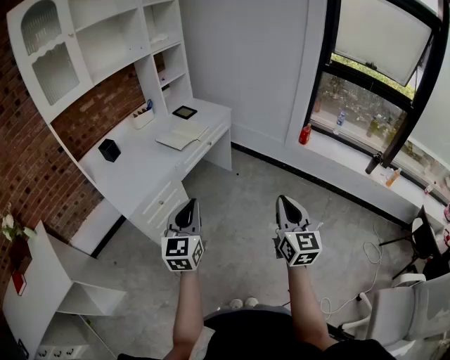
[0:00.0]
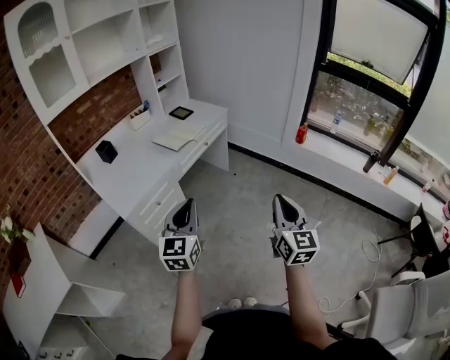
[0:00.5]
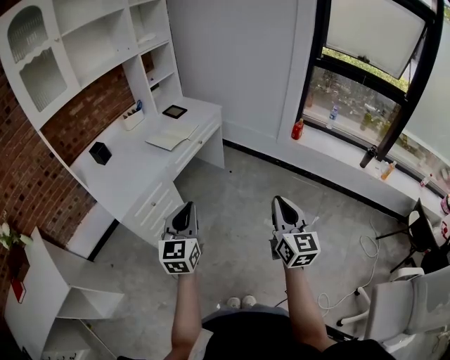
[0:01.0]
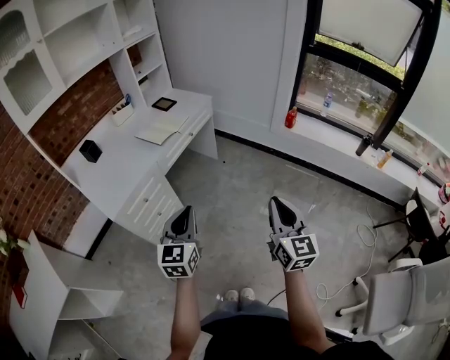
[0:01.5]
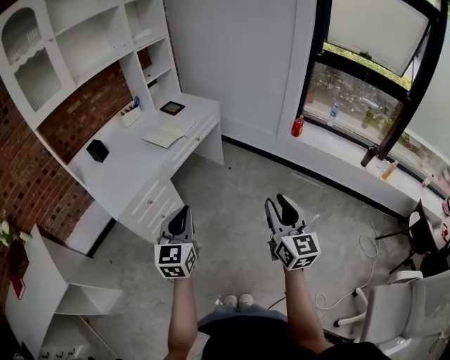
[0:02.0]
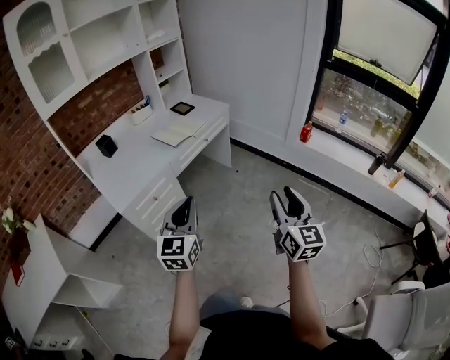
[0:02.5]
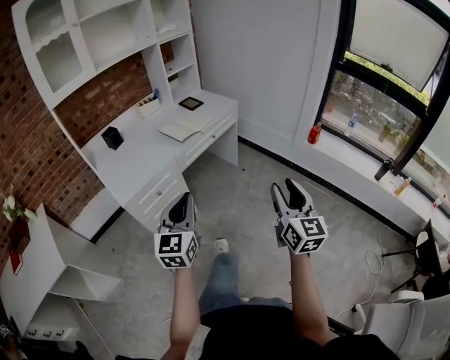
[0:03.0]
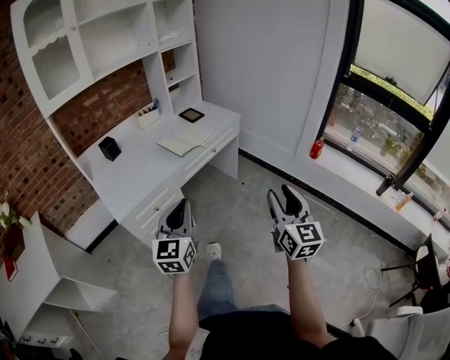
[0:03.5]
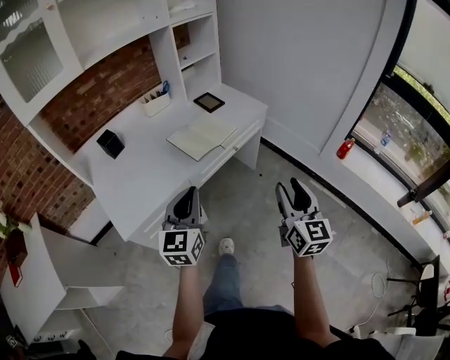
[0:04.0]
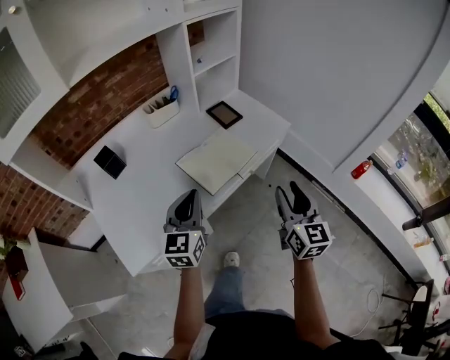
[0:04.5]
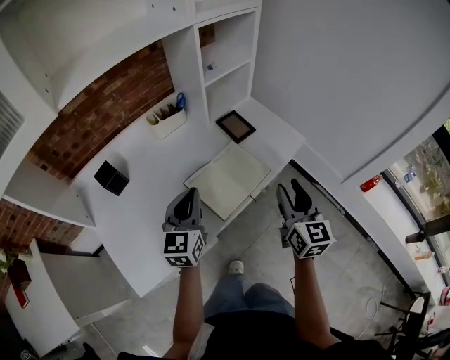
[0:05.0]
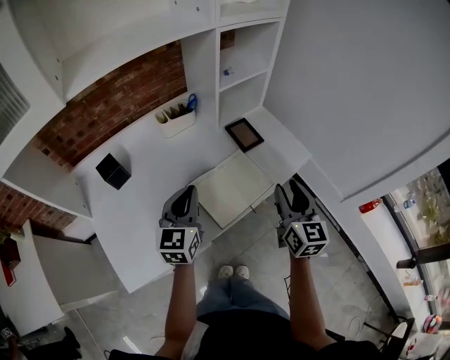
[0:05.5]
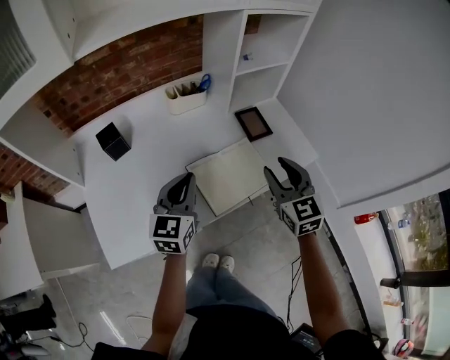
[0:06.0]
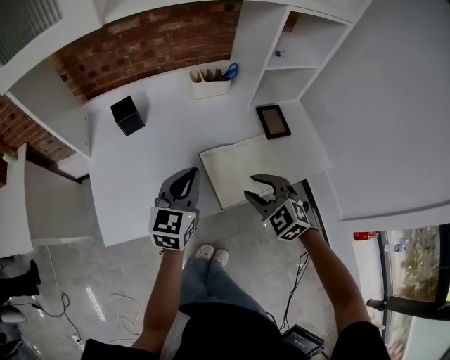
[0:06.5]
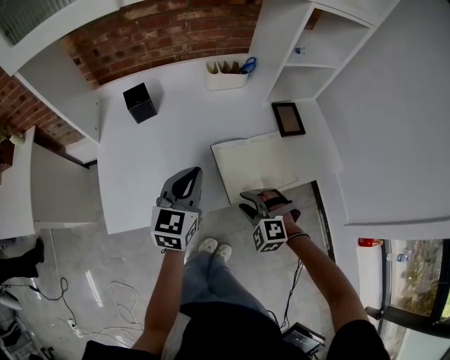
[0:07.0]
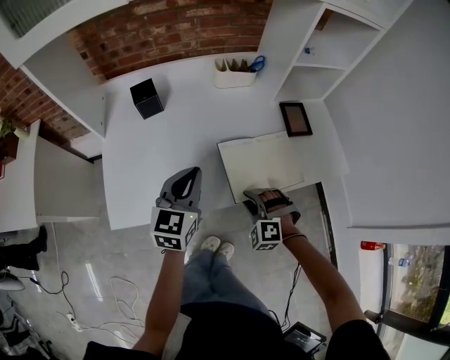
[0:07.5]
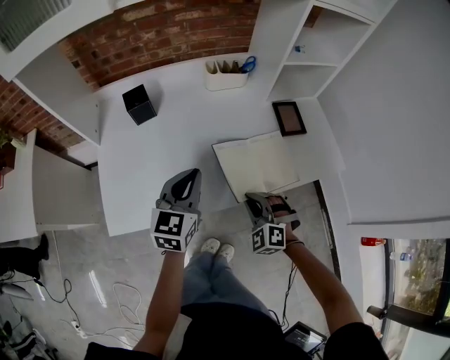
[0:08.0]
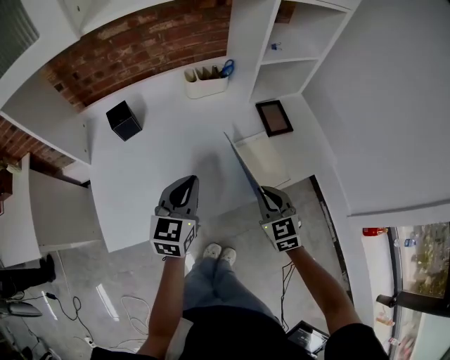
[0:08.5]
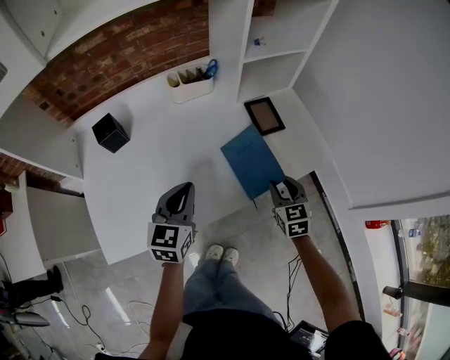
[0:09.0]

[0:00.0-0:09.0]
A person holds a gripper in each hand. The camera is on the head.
0:00.0 to 0:02.0: The right gripper opens.
0:02.0 to 0:04.5: The pair of grippers is taken forward, approximately 50 cm.
0:04.5 to 0:07.0: The left gripper ends up roughly 15 cm from where it was. Meanwhile the right gripper ends up roughly 30 cm from where it was, and angles its fingers downward, by about 50 degrees.
0:07.0 to 0:09.0: The right gripper goes some 20 cm to the right and forward, rolls clockwise, seen from behind, by approximately 70 degrees, and closes and opens again; the left gripper heads to the right, covering approximately 5 cm.

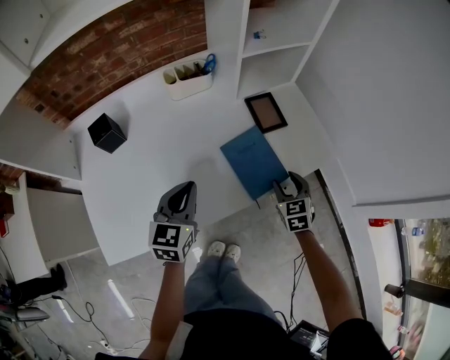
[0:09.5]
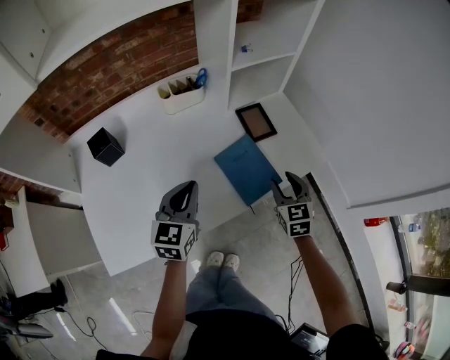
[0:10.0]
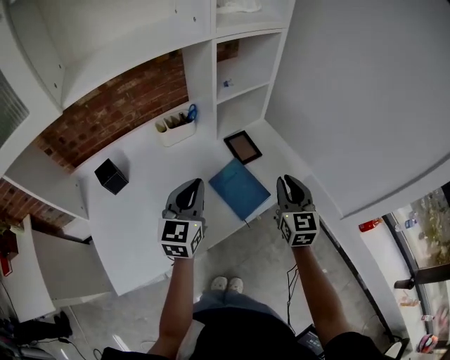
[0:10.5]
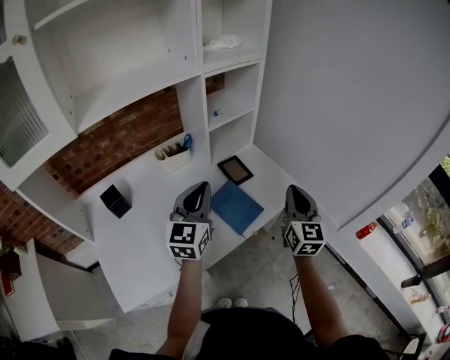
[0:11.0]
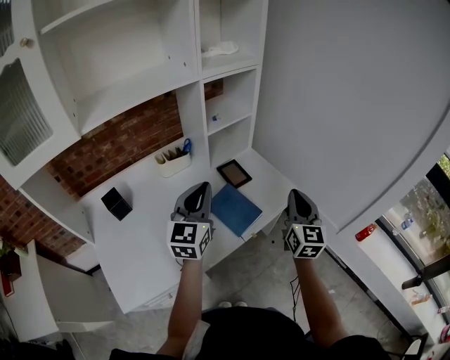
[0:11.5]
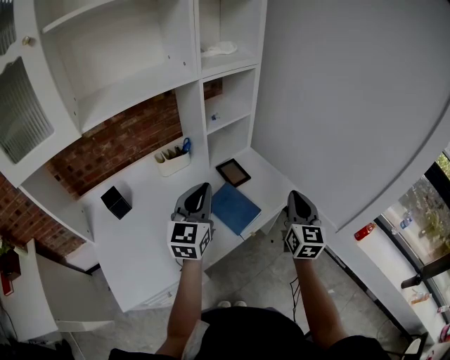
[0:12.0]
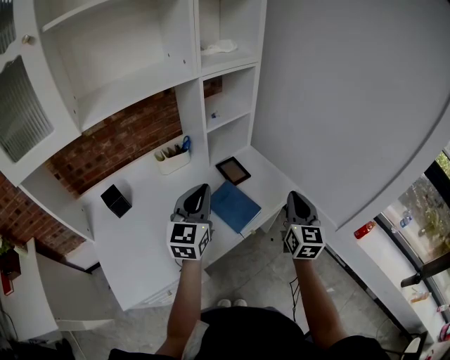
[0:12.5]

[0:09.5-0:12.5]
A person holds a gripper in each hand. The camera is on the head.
0:09.5 to 0:11.0: The right gripper shifts some 30 cm upward, tilts its fingers roughly 40 degrees upward, and closes up. The left gripper moves upward, approximately 20 cm, and turns by some 30 degrees.
0:11.0 to 0:12.5: There are only small adjustments of the grippers.

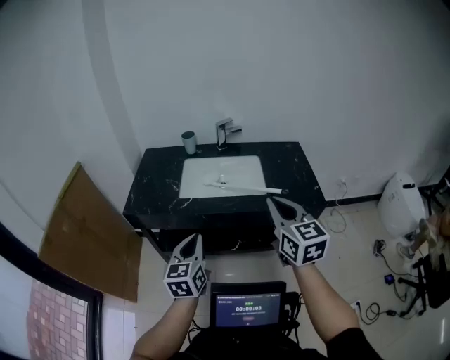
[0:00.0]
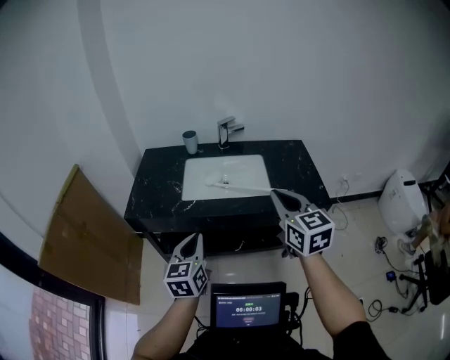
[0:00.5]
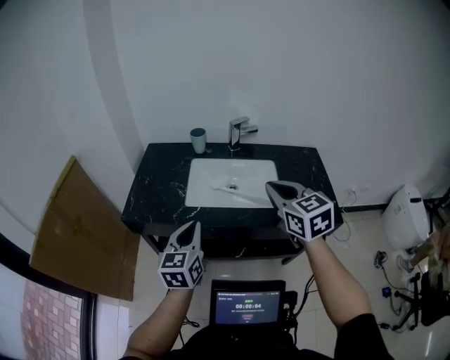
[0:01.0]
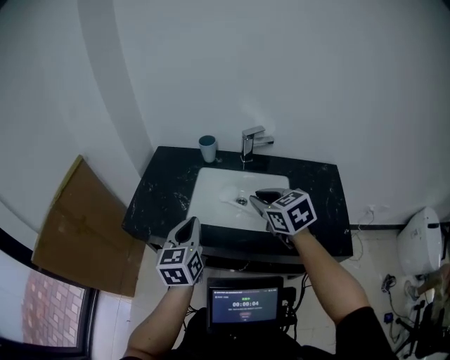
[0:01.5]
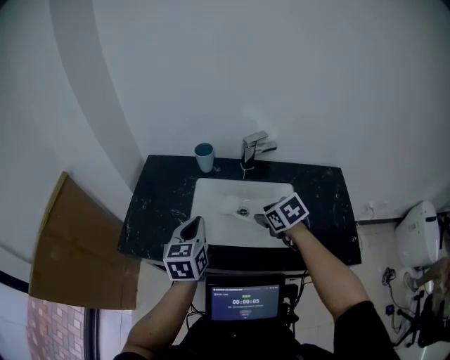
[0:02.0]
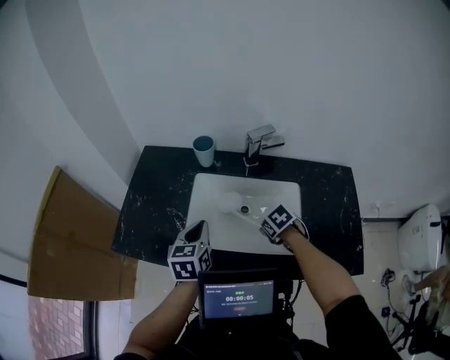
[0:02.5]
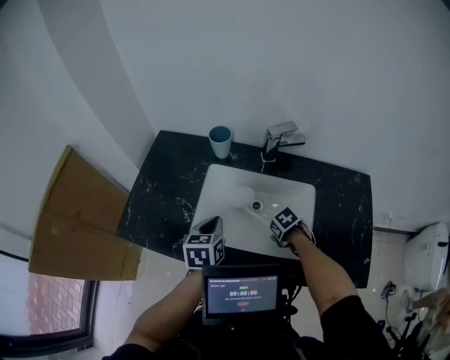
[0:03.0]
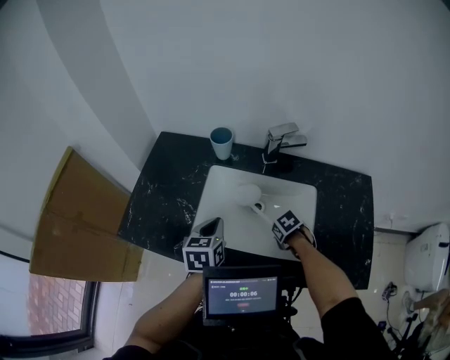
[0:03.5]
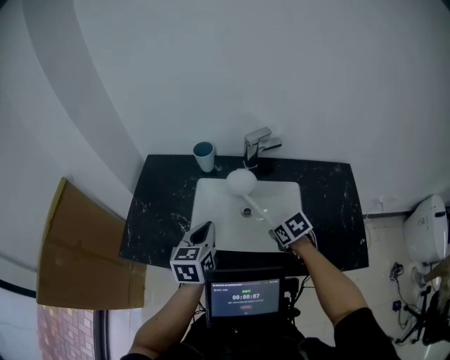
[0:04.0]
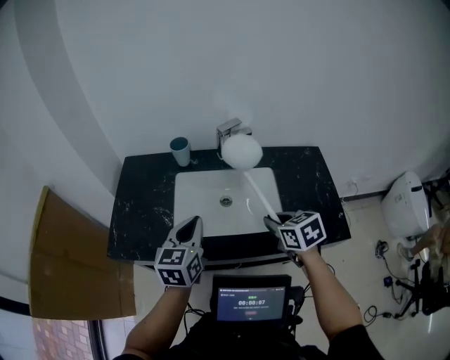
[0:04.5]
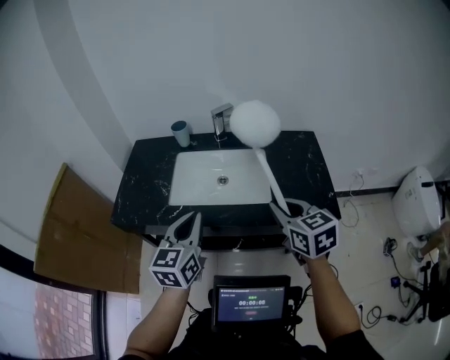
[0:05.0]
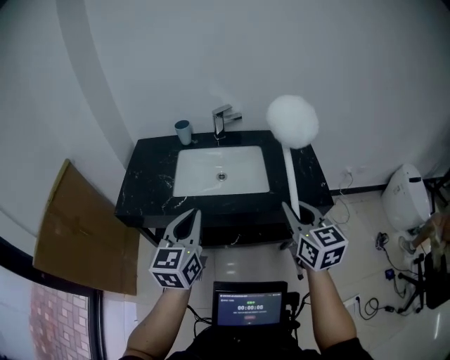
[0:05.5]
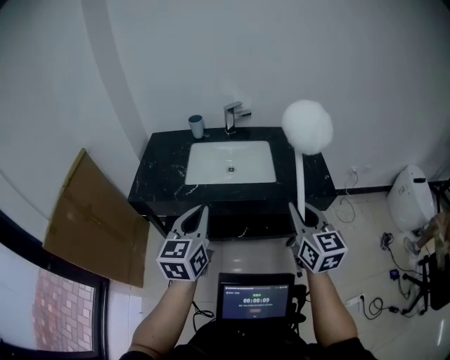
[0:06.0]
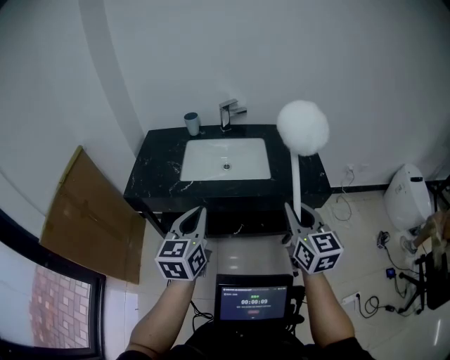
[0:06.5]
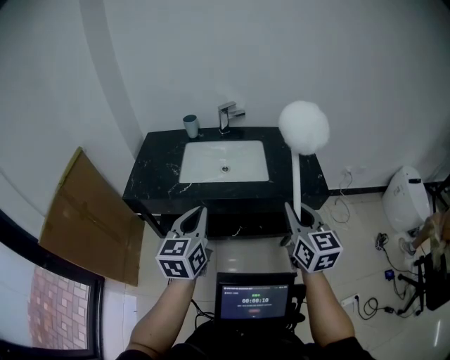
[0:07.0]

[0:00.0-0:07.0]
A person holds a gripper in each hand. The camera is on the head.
0:00.0 to 0:02.0: The left gripper moves forward, approximately 35 cm; the right gripper goes roughly 40 cm forward and downward, tilts its fingers about 50 degrees downward, and opens its fingers.
0:02.0 to 0:03.5: The left gripper moves downward, roughly 10 cm, while the right gripper moves downward, about 20 cm, changes its angle by roughly 30 degrees, and closes.
0:03.5 to 0:05.0: The left gripper changes place by about 30 cm, and changes its angle by some 30 degrees. The right gripper heads upward, covering roughly 30 cm, and tips its fingers upward by about 60 degrees.
0:05.0 to 0:07.0: The grippers both shift backward by some 15 cm. The right gripper rotates about 20 degrees.

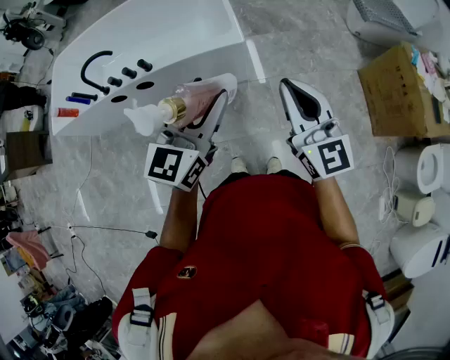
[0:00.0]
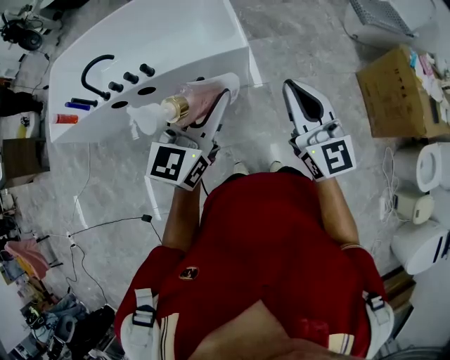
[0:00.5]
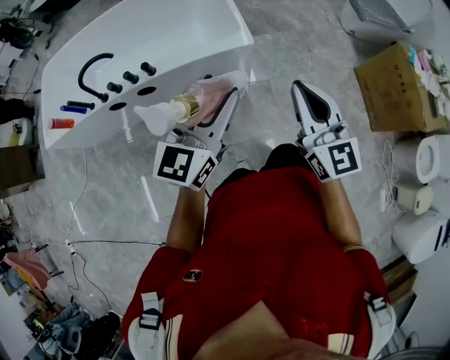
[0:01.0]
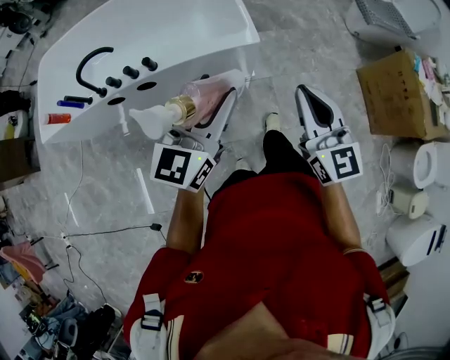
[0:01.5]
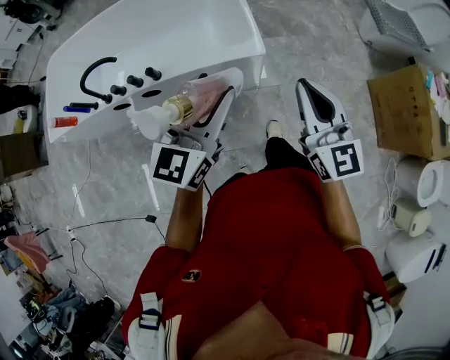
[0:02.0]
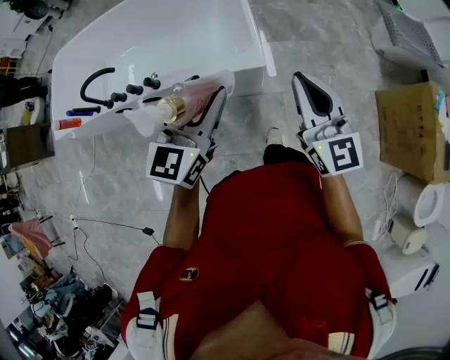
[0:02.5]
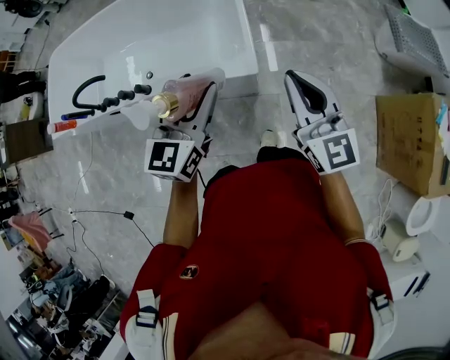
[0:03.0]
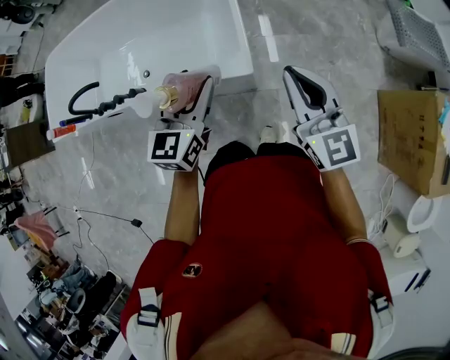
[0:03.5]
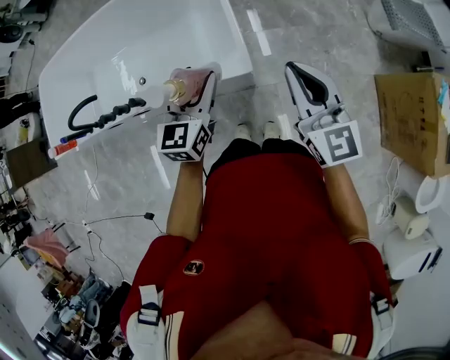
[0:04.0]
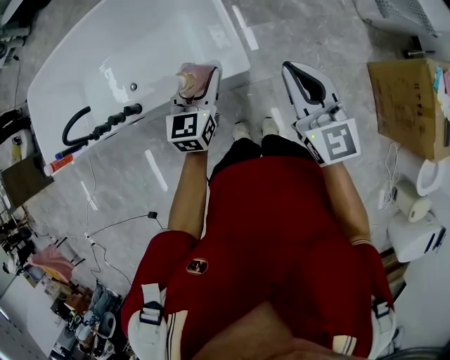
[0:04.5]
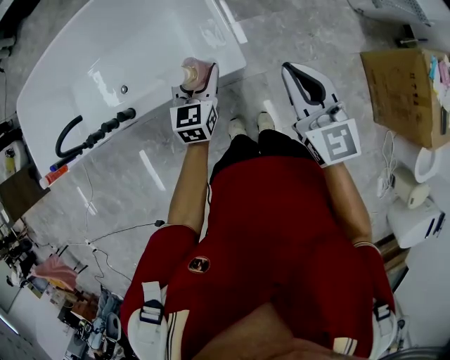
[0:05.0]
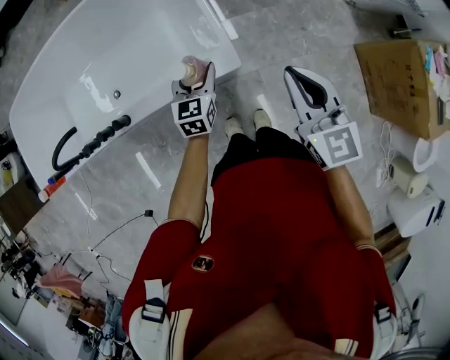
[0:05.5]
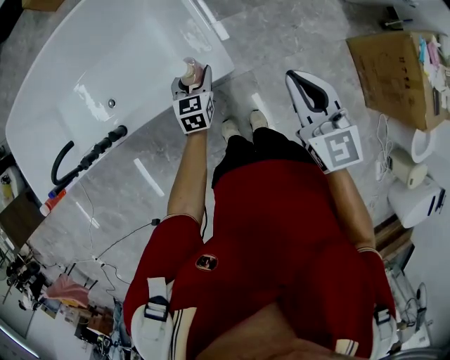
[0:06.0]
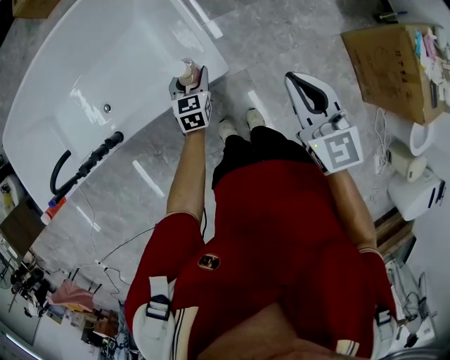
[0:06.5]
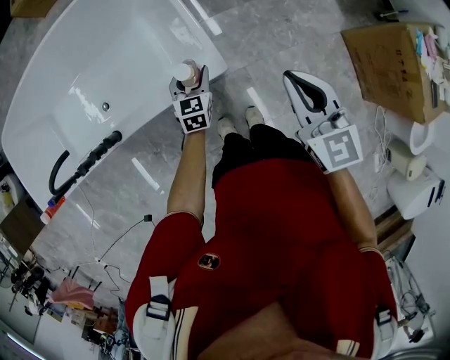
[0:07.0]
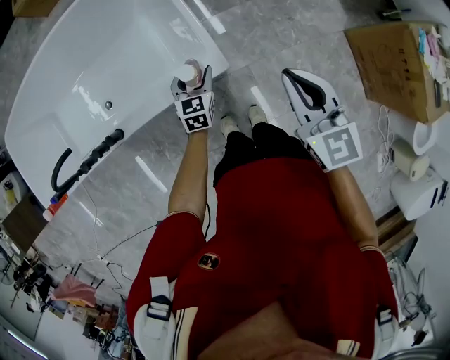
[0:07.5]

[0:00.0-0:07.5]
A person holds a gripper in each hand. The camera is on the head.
0:00.0 to 0:02.0: Both grippers move forward and to the left, approximately 15 cm.
0:02.0 to 0:04.0: The left gripper goes some 30 cm forward and downward. The right gripper goes approximately 25 cm forward and to the right.
0:04.0 to 0:05.5: The right gripper moves downward, roughly 5 cm; the left gripper travels downward and forward by roughly 20 cm.
0:05.5 to 0:07.5: The left gripper heads downward, covering roughly 10 cm.
